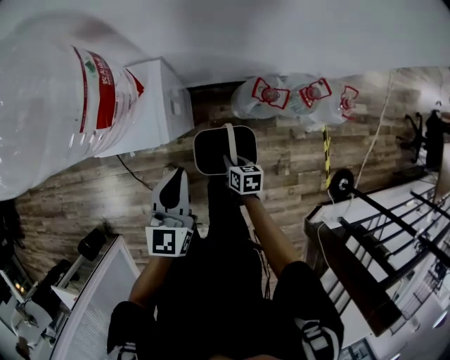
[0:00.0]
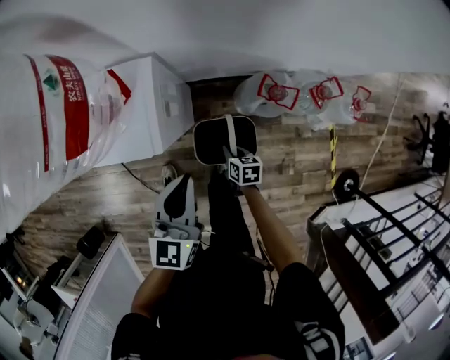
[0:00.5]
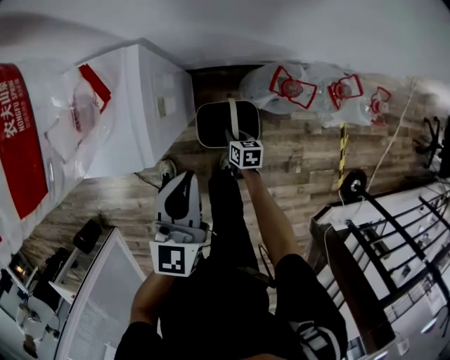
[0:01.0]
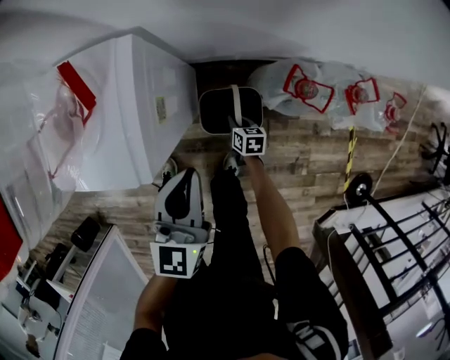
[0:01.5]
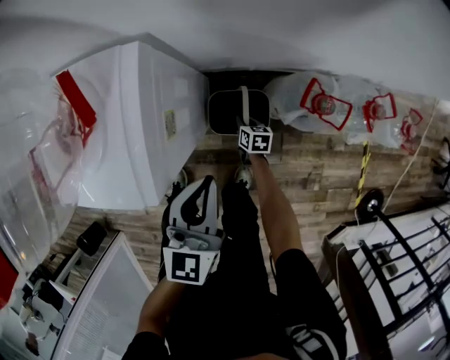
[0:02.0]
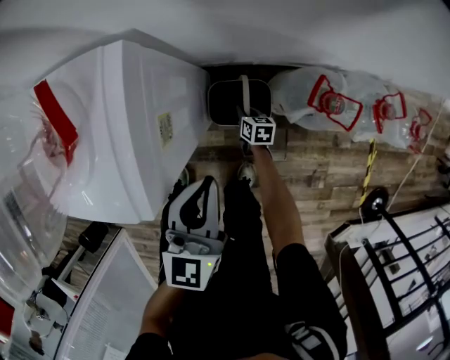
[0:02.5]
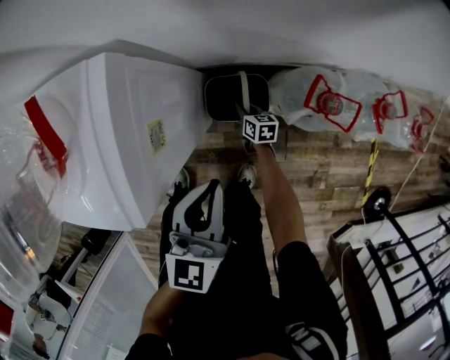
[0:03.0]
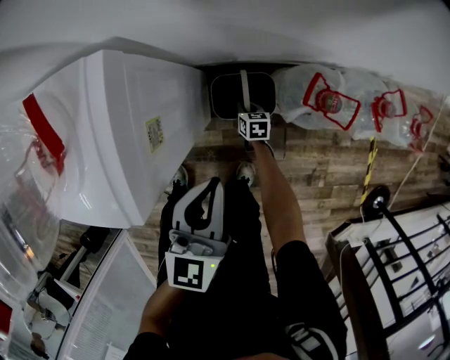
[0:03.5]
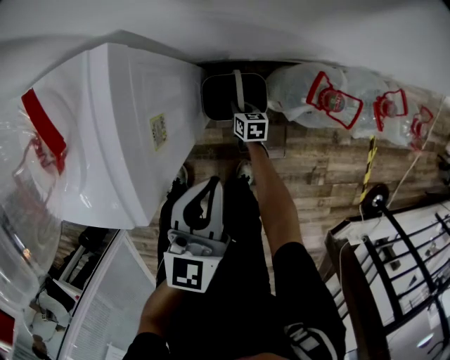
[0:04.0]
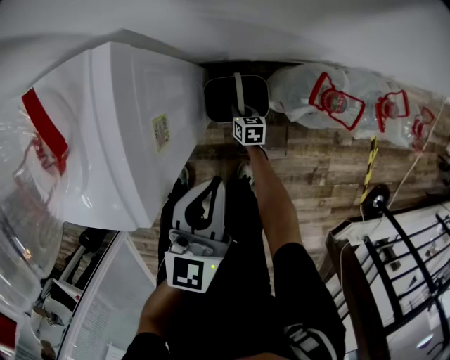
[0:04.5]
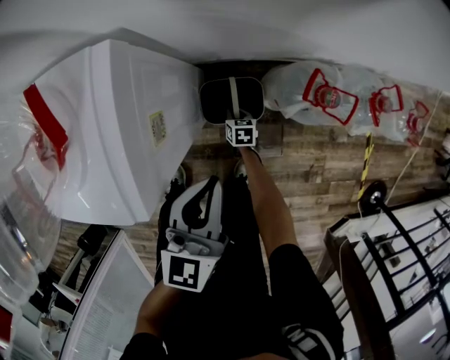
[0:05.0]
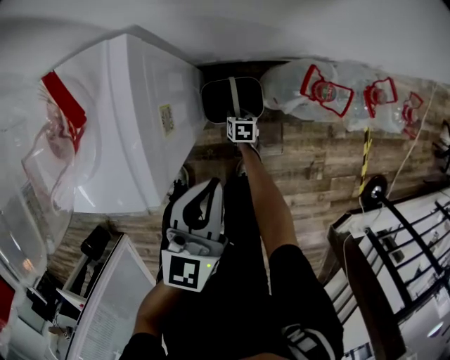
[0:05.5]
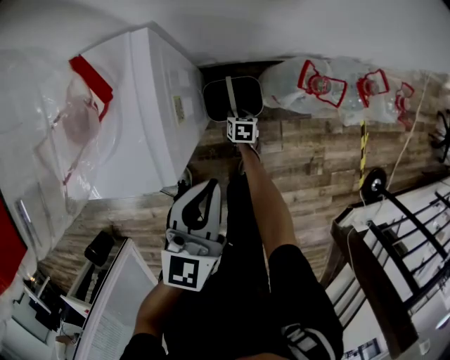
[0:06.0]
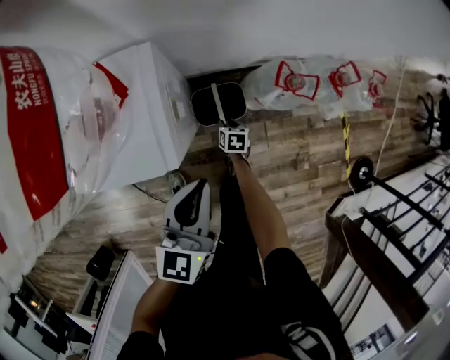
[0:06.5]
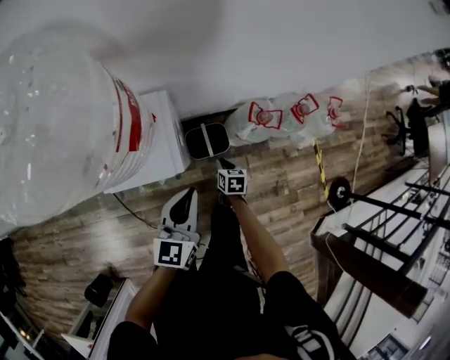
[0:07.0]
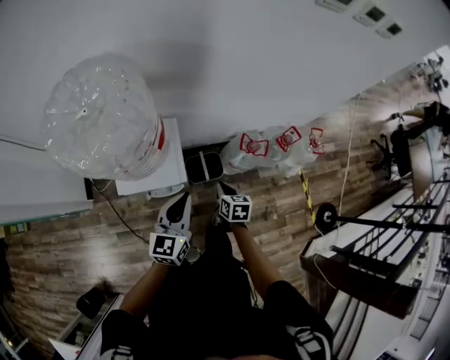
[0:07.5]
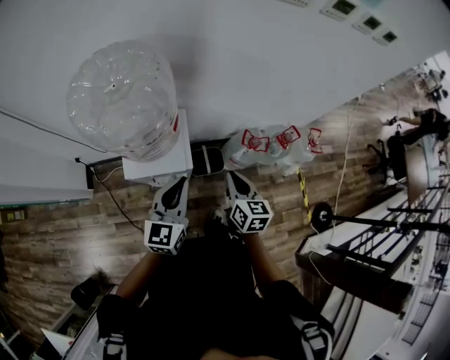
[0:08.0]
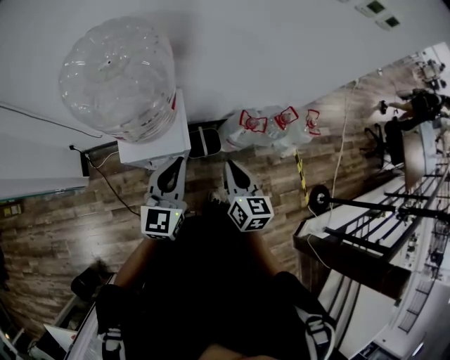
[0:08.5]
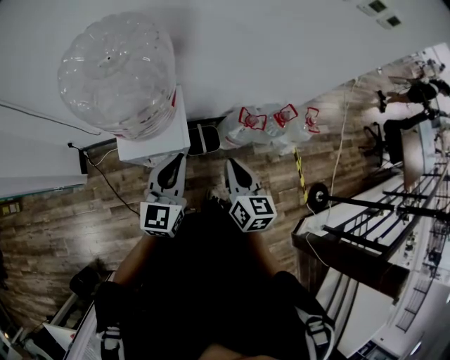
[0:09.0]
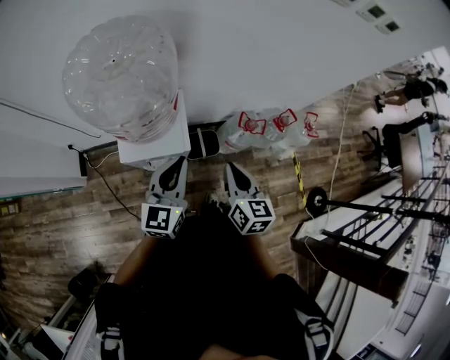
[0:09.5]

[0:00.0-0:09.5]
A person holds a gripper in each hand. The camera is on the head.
0:00.0 to 0:02.0: The right gripper travels downward and forward by about 40 cm; the left gripper shifts about 25 cm downward and forward.
0:02.0 to 0:04.0: The right gripper changes place by approximately 5 cm.
0:04.0 to 0:05.5: The right gripper opens up.
0:05.5 to 0:07.5: The left gripper heads upward, covering roughly 25 cm, while the right gripper moves upward, approximately 50 cm, swivels some 20 degrees, and closes its fingers.
0:07.5 to 0:09.5: The left gripper is displaced upward by about 5 cm. Meanwhile the right gripper goes some 20 cm upward, and rotates roughly 20 degrees.

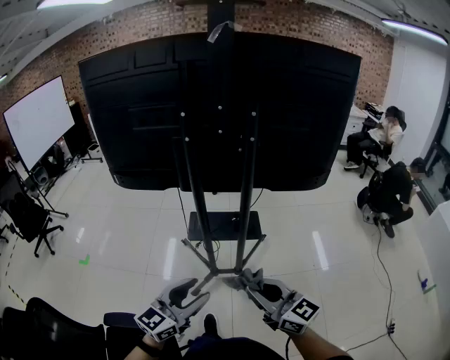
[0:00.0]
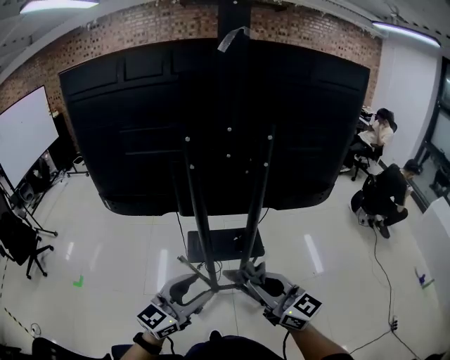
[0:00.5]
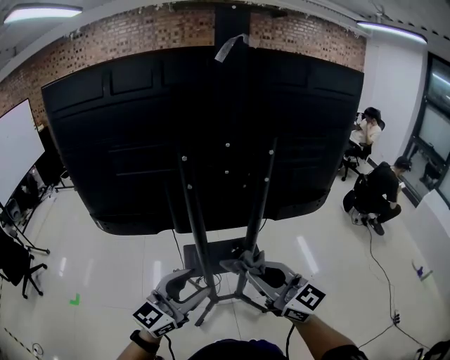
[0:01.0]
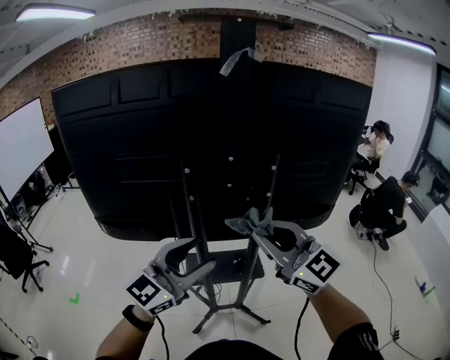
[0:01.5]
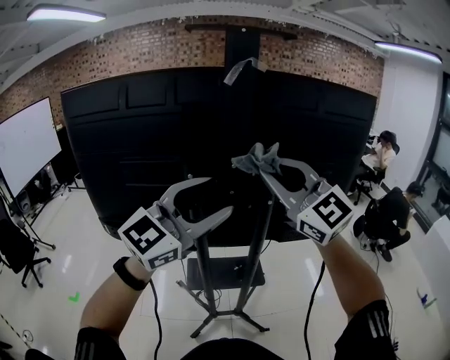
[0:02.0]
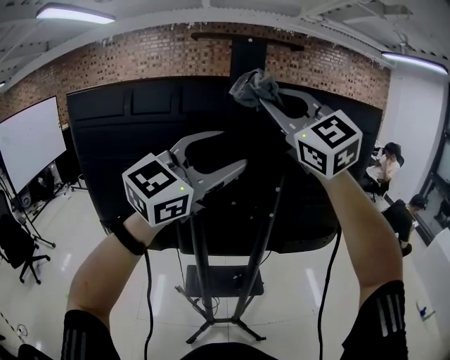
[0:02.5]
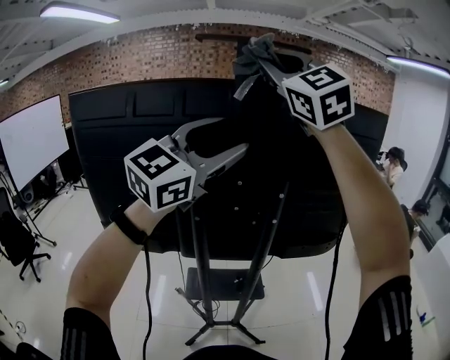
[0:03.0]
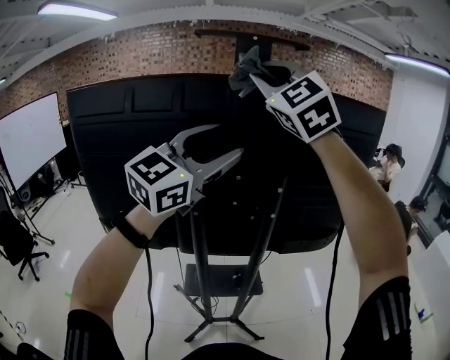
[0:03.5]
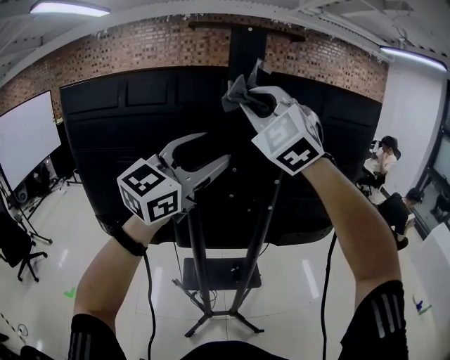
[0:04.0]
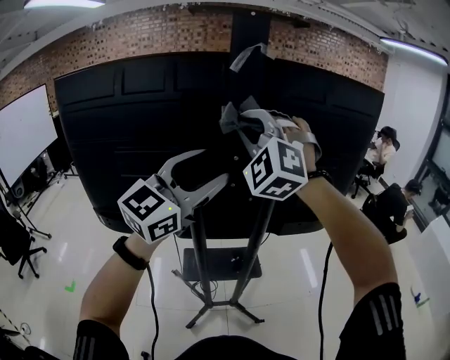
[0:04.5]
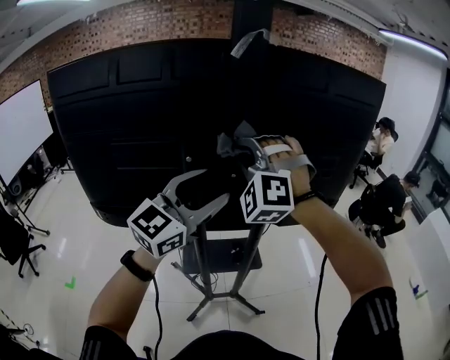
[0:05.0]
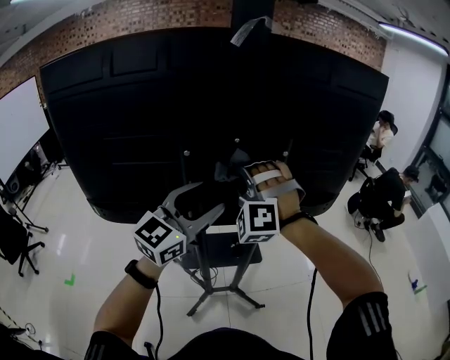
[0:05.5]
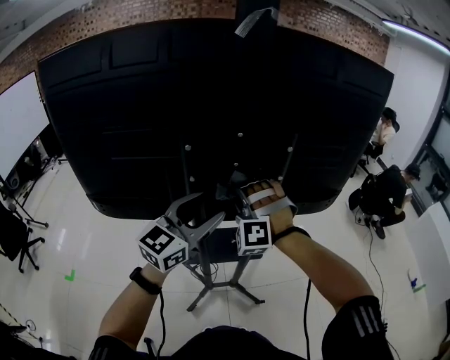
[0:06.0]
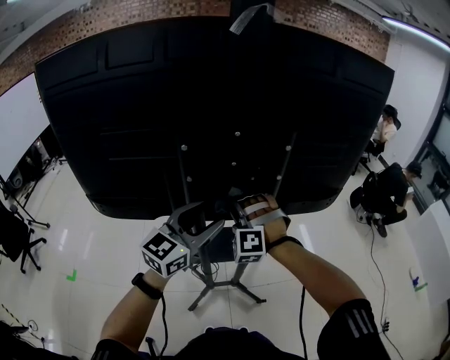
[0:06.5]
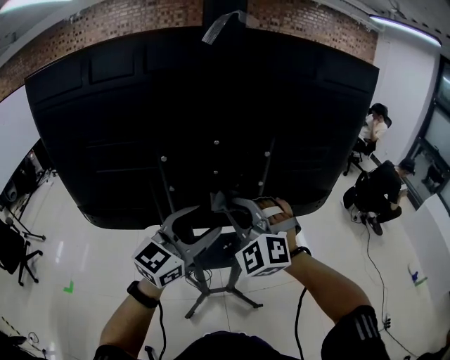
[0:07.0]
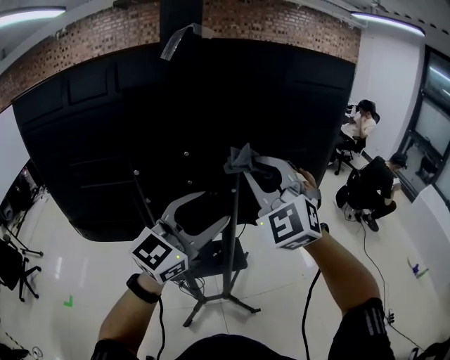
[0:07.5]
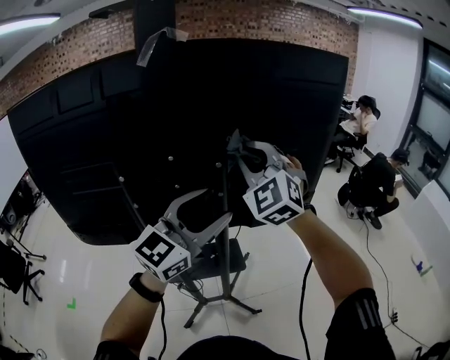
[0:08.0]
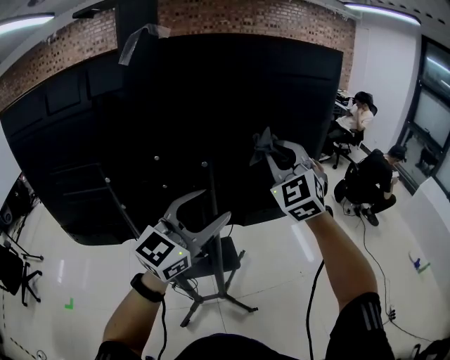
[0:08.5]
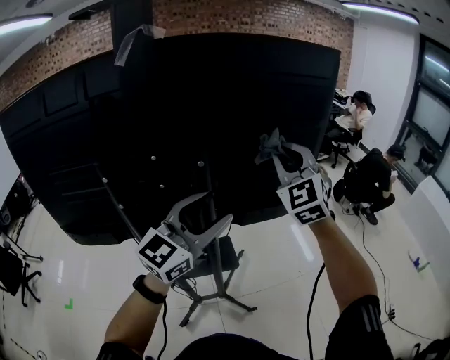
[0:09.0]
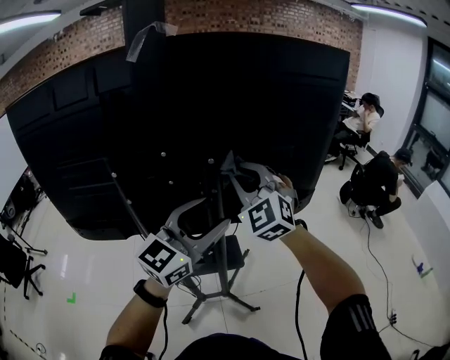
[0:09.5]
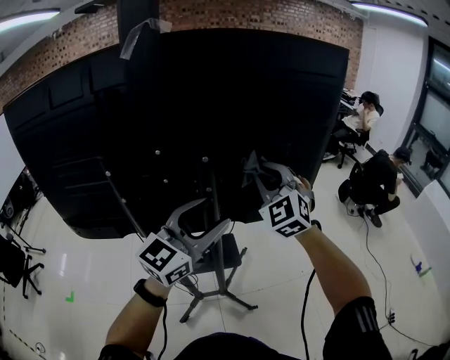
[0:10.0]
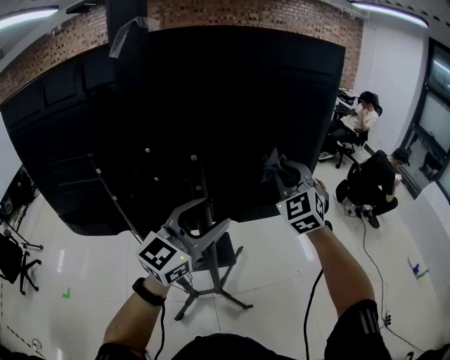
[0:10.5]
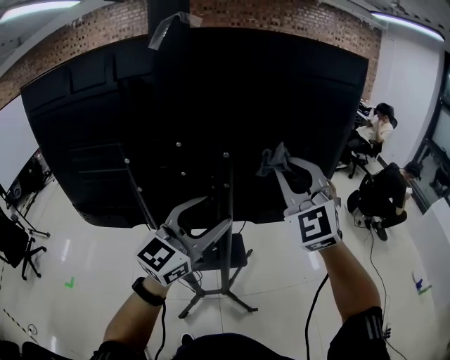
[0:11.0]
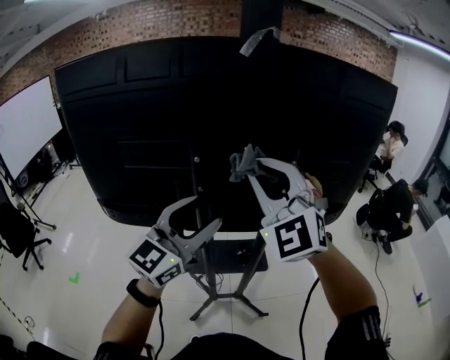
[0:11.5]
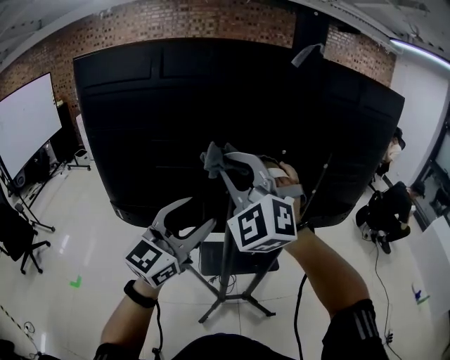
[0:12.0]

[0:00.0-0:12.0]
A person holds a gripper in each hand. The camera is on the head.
0:00.0 to 0:02.0: Both grippers travel together upward and forward, roughly 50 cm. The right gripper rolls counterclockwise, seen from behind, by some 40 degrees. The left gripper rotates roughly 30 degrees.
0:02.0 to 0:04.0: The left gripper goes about 10 cm forward and upward, while the right gripper shifts roughly 15 cm upward, forward and to the left, and swivels about 40 degrees.
0:04.0 to 0:06.0: The right gripper shifts roughly 40 cm downward, and swivels about 40 degrees. Meanwhile the left gripper shifts about 25 cm downward.
0:06.0 to 0:08.0: The right gripper goes roughly 25 cm upward and to the right, and twists about 40 degrees clockwise, seen from behind, while the left gripper moves to the right and upward, some 20 cm.
0:08.0 to 0:10.0: The left gripper shifts by about 5 cm. Meanwhile the right gripper moves left and right over approximately 10 cm, changing direction 2 times.
0:10.0 to 0:12.0: The right gripper is displaced to the left and backward by approximately 40 cm, and turns by approximately 20 degrees, while the left gripper moves to the left, about 30 cm.

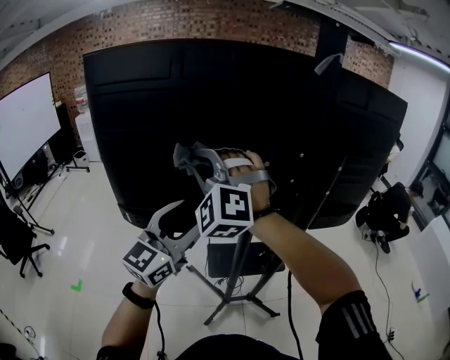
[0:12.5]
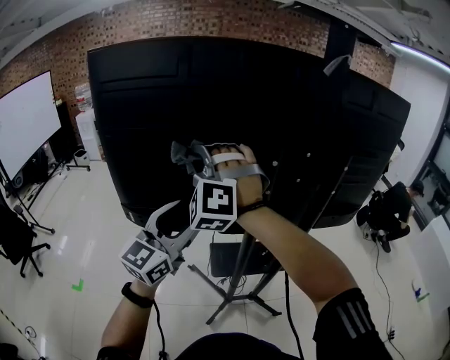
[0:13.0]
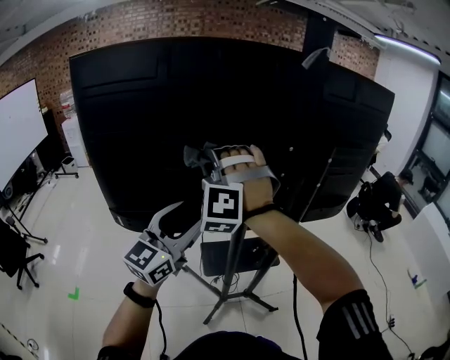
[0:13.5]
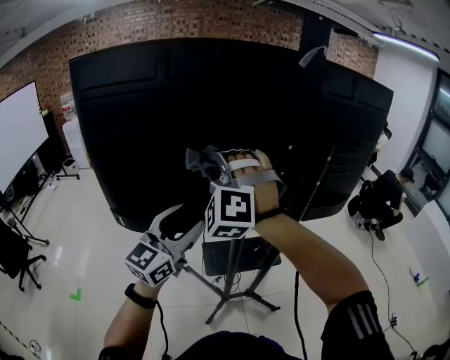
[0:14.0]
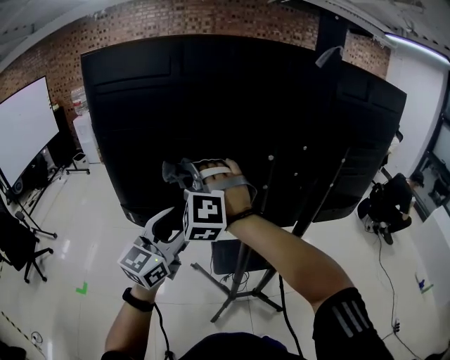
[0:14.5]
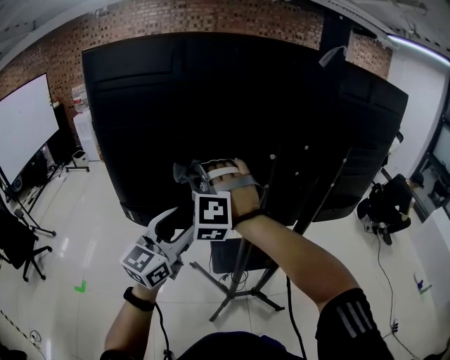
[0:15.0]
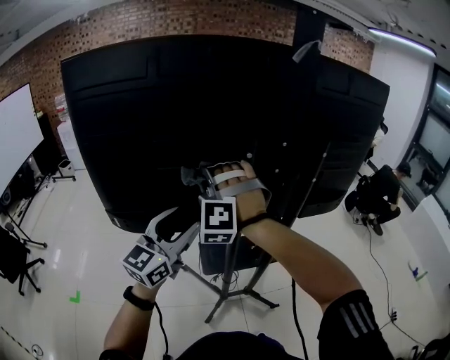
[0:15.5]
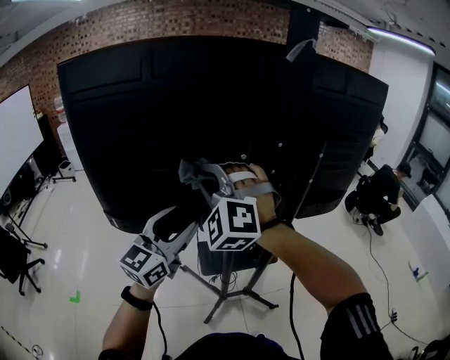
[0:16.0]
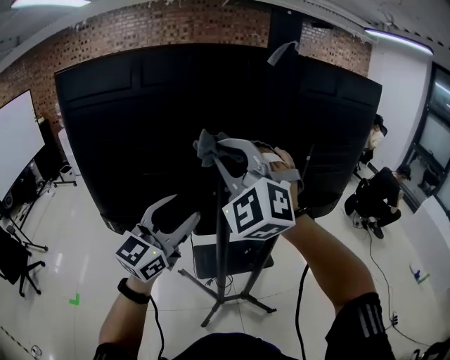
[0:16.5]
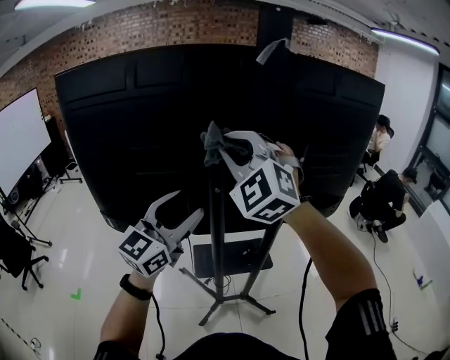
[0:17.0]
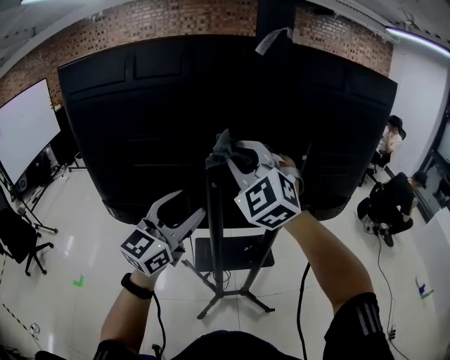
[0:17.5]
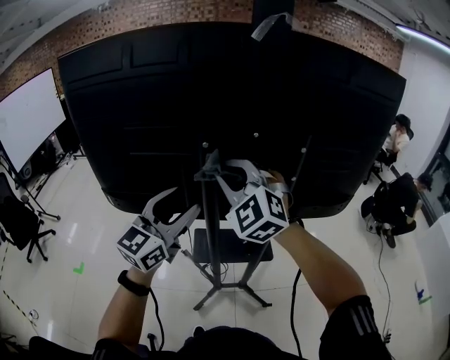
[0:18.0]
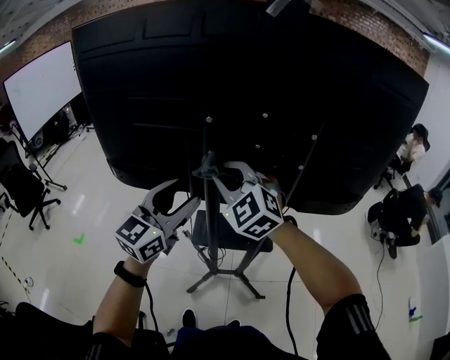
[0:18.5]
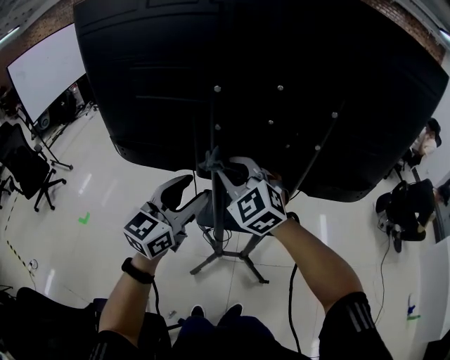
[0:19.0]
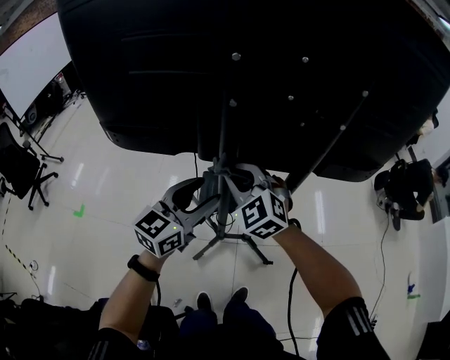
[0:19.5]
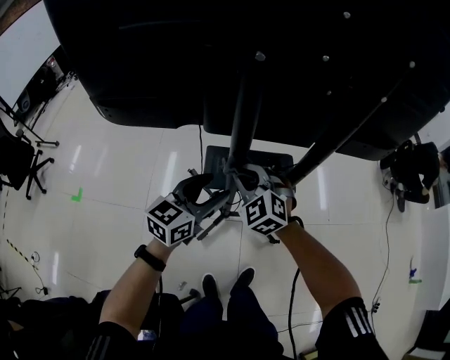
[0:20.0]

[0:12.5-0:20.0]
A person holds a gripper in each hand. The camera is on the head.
0:12.5 to 0:14.5: The left gripper ends up approximately 5 cm from where it was. Meanwhile the right gripper shifts some 5 cm downward.
0:14.5 to 0:16.5: The left gripper heads to the right and upward, covering approximately 10 cm. Meanwhile the right gripper goes roughly 20 cm to the right and upward, and turns by some 20 degrees.
0:16.5 to 0:18.0: The right gripper travels downward and to the right by about 15 cm, and swivels roughly 20 degrees. Meanwhile the left gripper goes roughly 5 cm to the right.
0:18.0 to 0:20.0: The grippers both shift downward by some 35 cm. The left gripper swivels about 30 degrees. The right gripper changes its angle by about 20 degrees.
